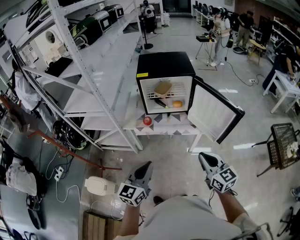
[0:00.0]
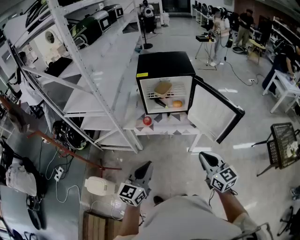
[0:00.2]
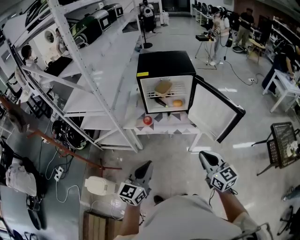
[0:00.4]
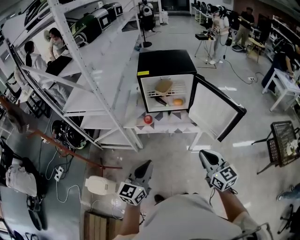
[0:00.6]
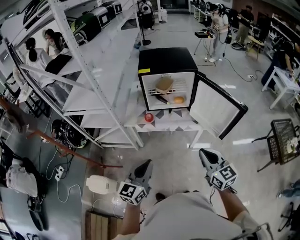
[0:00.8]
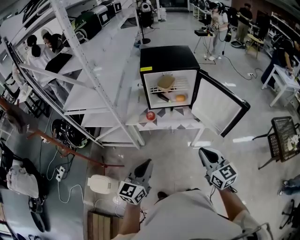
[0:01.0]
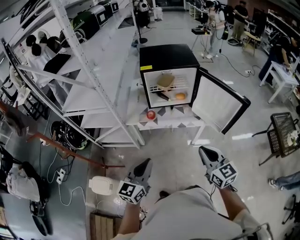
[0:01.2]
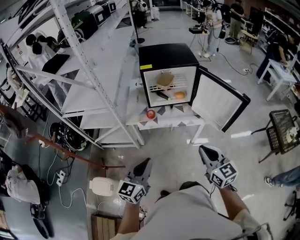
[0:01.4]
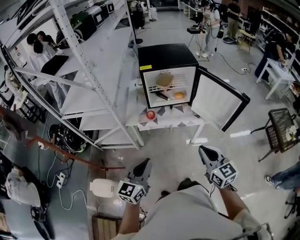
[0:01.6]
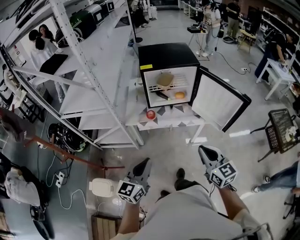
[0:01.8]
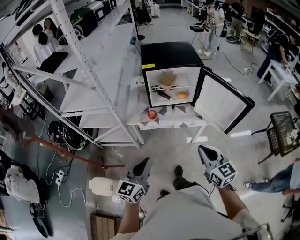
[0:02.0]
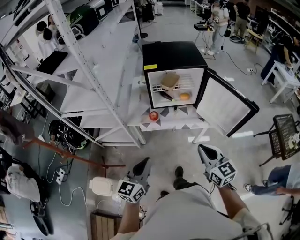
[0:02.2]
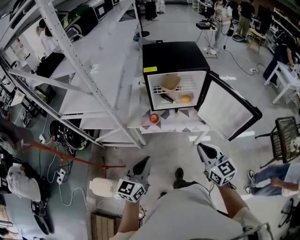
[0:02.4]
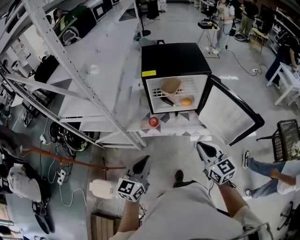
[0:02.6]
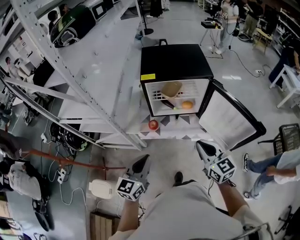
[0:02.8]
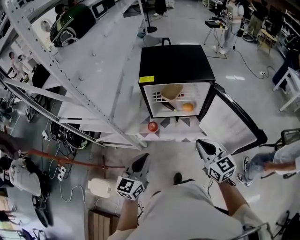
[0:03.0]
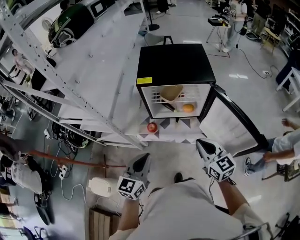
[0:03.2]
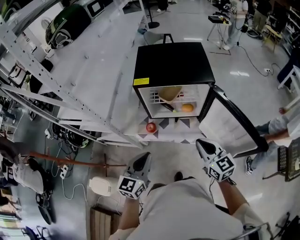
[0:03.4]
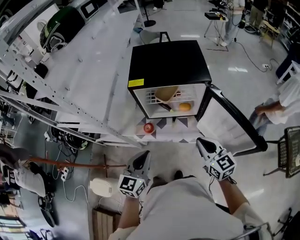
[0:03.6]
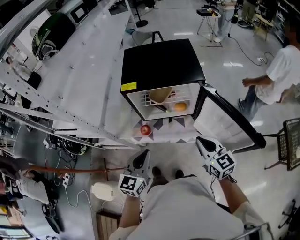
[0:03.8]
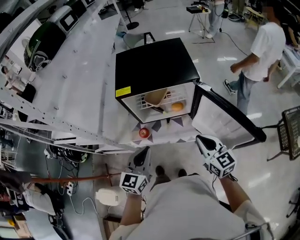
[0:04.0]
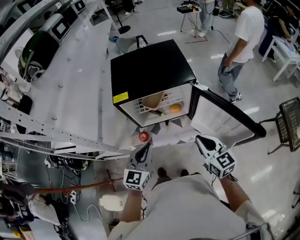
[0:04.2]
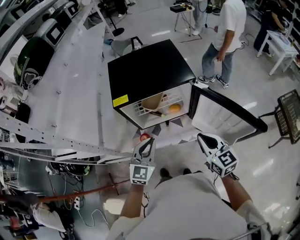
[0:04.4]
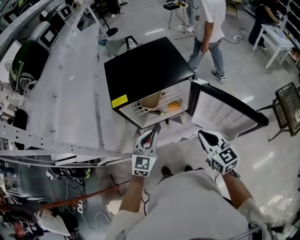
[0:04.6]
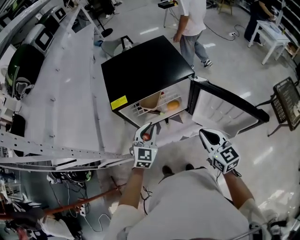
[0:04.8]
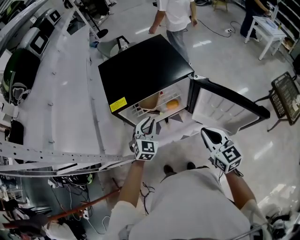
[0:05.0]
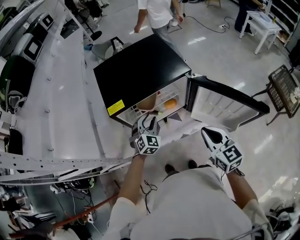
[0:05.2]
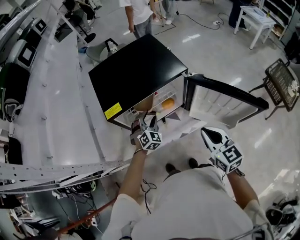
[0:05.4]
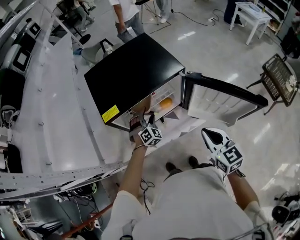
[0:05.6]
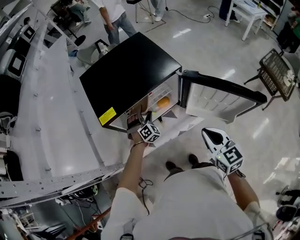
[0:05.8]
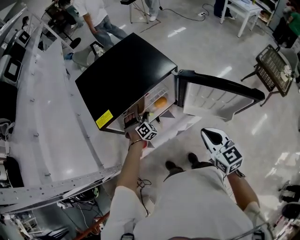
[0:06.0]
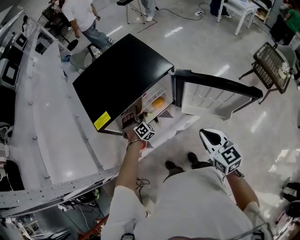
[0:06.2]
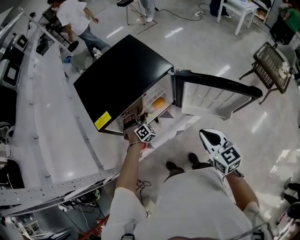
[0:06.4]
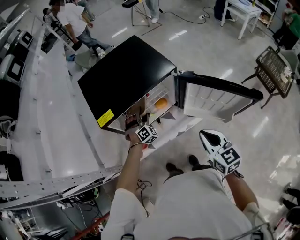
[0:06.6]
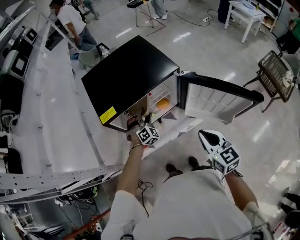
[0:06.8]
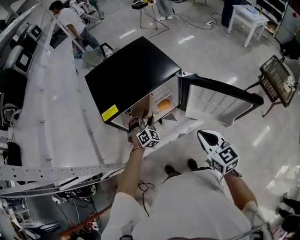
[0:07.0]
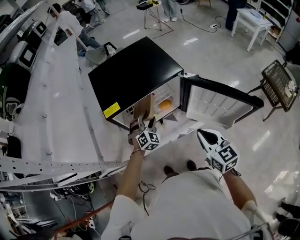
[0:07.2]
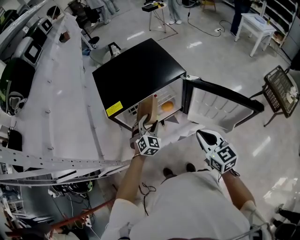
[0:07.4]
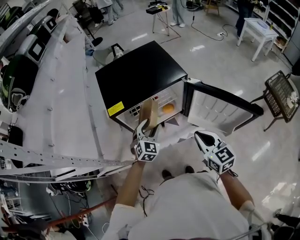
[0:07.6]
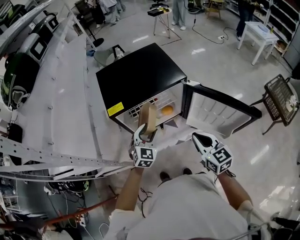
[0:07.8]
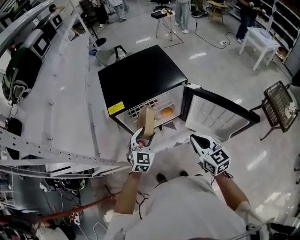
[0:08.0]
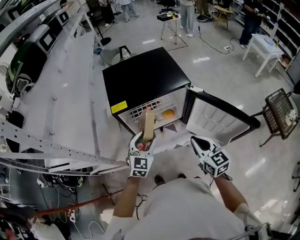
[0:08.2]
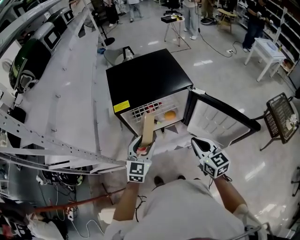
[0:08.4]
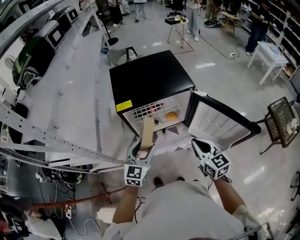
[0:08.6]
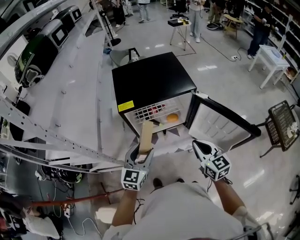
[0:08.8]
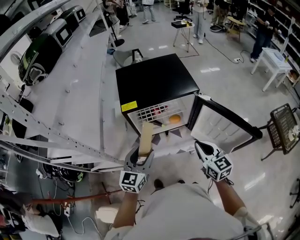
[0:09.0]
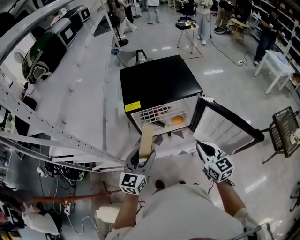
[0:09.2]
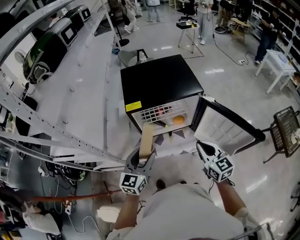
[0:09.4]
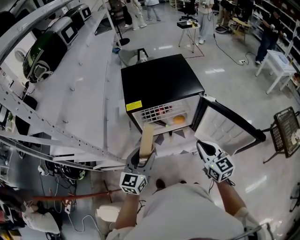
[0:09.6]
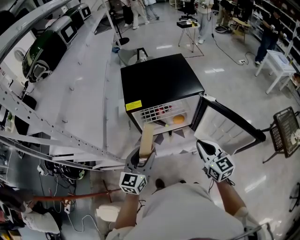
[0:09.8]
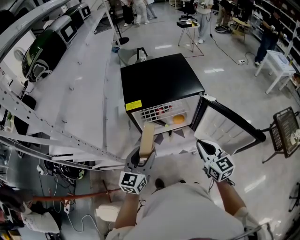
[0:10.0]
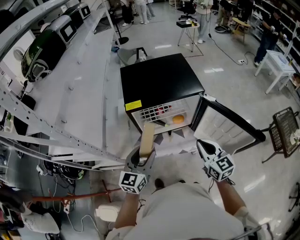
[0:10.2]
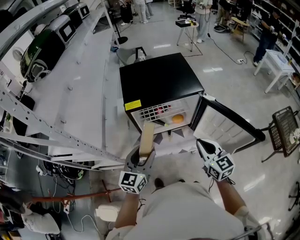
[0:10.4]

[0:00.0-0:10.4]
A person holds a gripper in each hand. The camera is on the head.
0:00.0 to 0:01.4: Both grippers travel together to the left, roughly 10 cm.
0:01.4 to 0:03.0: The two grippers go approximately 25 cm forward.
0:03.0 to 0:04.4: The left gripper moves forward and to the right, roughly 20 cm, and turns by roughly 30 degrees; the right gripper heads forward and to the right, covering some 10 cm.
0:04.4 to 0:06.0: The right gripper rotates some 20 degrees, while the left gripper moves forward and downward, roughly 30 cm, rotates around the line of its fingers by about 50 degrees, clockwise from behind, and opens its fingers.
0:06.0 to 0:07.4: The left gripper travels upward and backward by about 15 cm, and changes its angle by roughly 30 degrees.
0:07.4 to 0:09.0: The left gripper moves backward, upward and to the left, about 20 cm, and rolls counterclockwise, seen from behind, by about 40 degrees.
0:09.0 to 0:10.4: The grippers make only small movements.

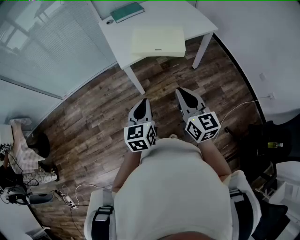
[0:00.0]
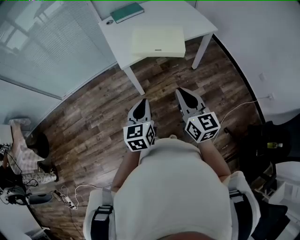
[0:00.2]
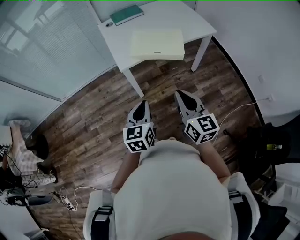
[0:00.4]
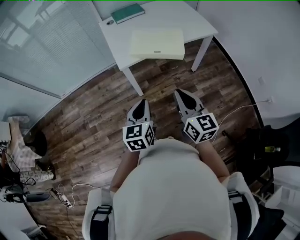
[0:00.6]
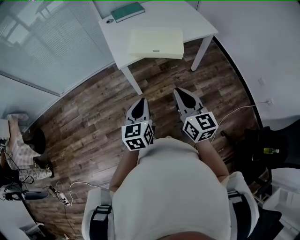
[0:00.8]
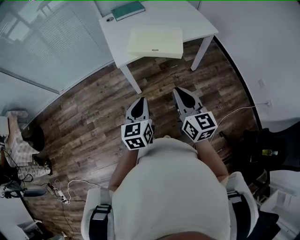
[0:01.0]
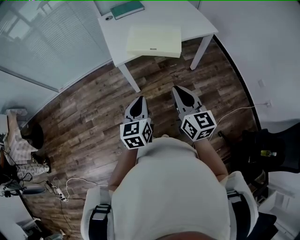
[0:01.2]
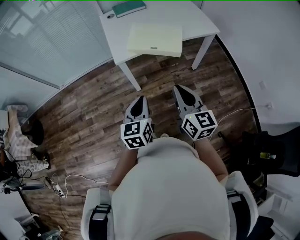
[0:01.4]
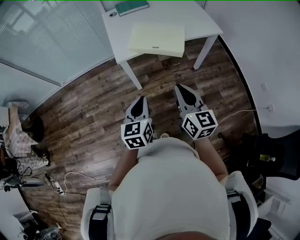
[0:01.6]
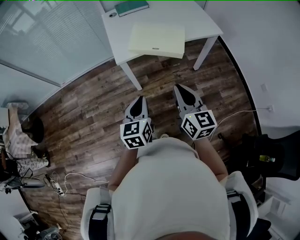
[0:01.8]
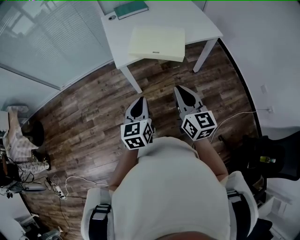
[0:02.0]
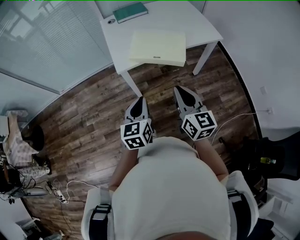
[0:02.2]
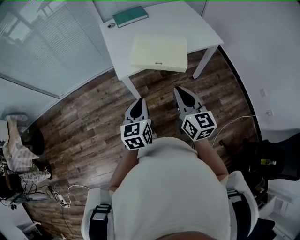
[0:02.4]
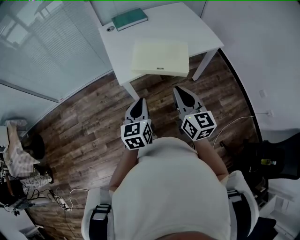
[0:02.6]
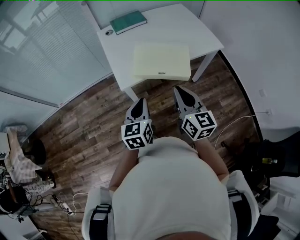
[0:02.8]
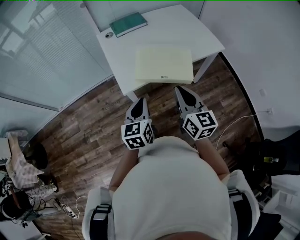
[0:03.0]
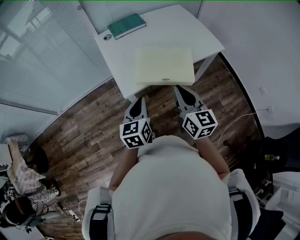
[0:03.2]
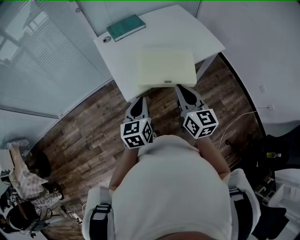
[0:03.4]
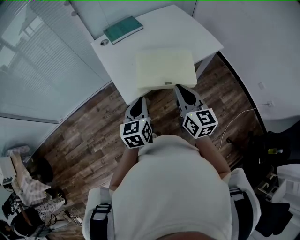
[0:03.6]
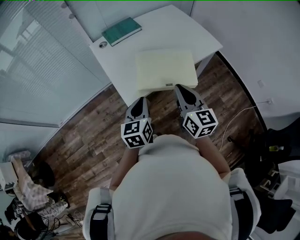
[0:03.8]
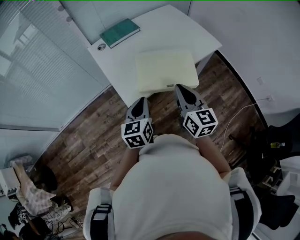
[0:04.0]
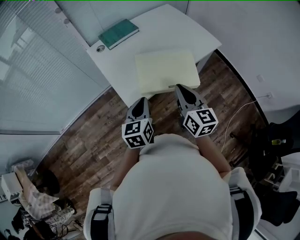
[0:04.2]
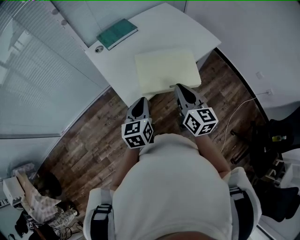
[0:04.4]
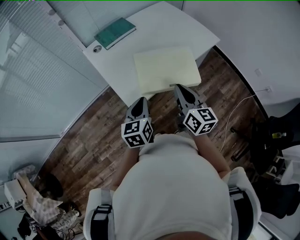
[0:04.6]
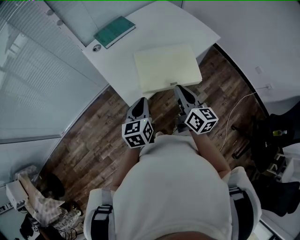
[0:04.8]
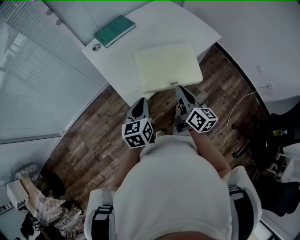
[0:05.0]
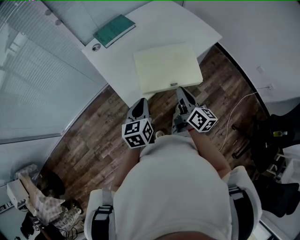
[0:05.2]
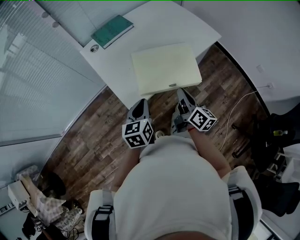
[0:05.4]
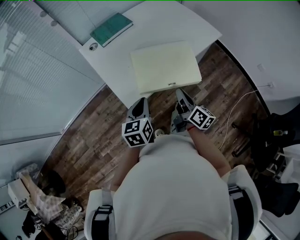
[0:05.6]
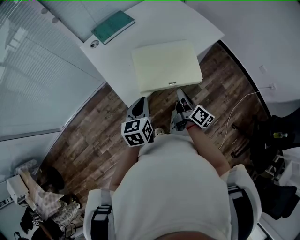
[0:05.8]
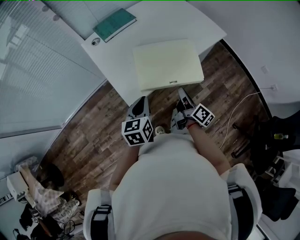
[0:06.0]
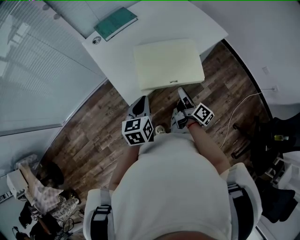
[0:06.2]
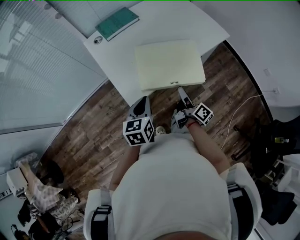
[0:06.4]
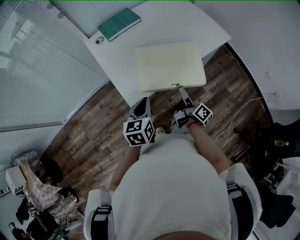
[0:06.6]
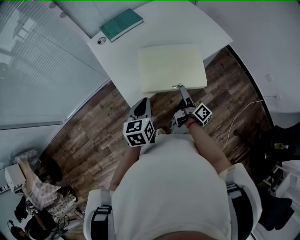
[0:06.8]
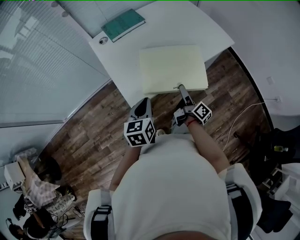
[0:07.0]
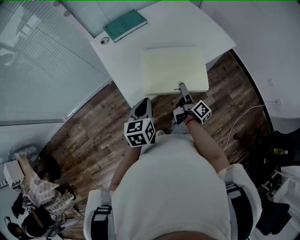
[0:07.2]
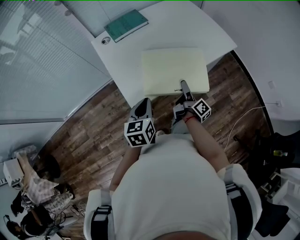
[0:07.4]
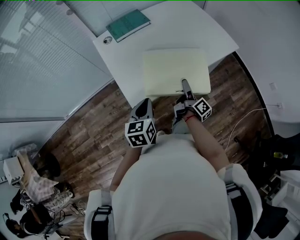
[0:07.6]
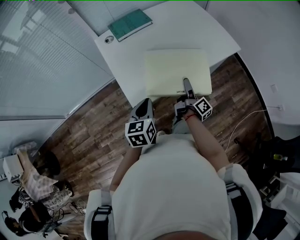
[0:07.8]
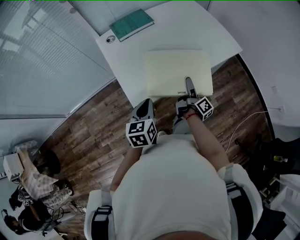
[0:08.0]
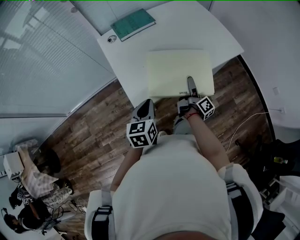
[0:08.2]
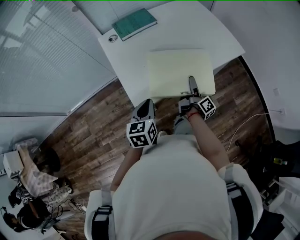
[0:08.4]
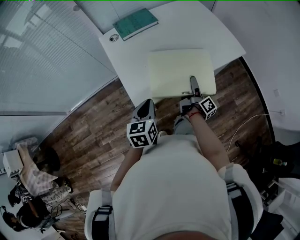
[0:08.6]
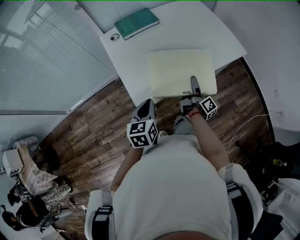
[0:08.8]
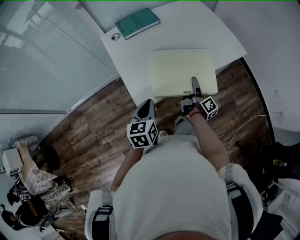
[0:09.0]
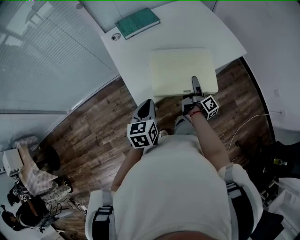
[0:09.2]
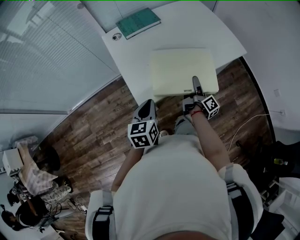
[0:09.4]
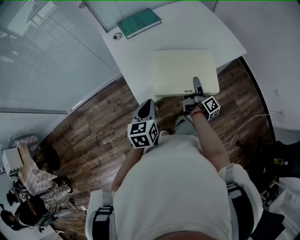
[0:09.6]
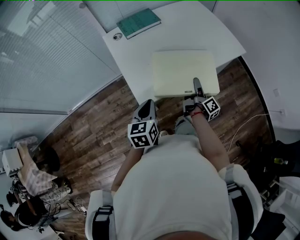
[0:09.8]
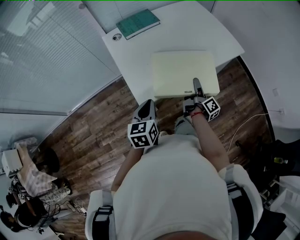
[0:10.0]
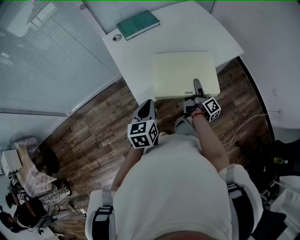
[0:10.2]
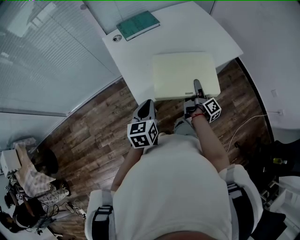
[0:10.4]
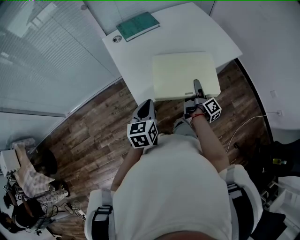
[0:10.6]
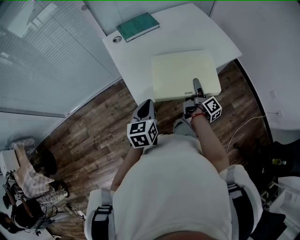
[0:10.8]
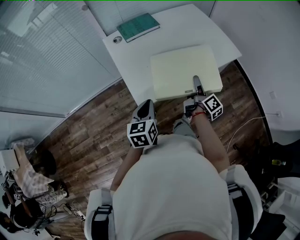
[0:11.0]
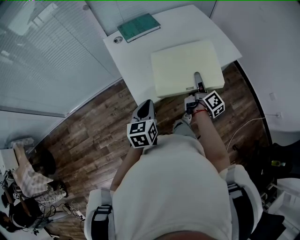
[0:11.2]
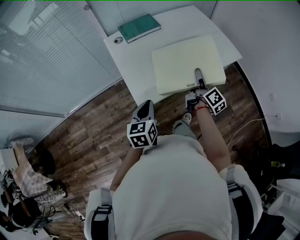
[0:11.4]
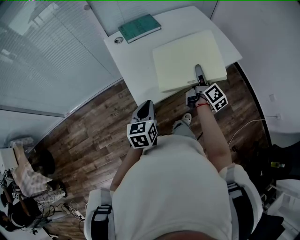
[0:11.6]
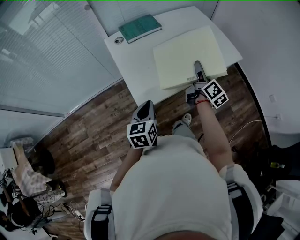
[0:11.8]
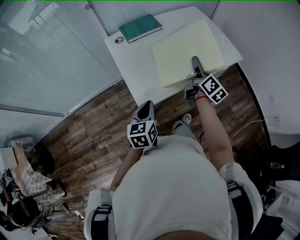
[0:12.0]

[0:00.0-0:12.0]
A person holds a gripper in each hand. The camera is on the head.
0:00.0 to 0:01.6: The right gripper moves roughly 5 cm.
0:01.6 to 0:03.0: The grippers both shift forward by approximately 20 cm.
0:03.0 to 0:04.4: The two grippers go roughly 10 cm forward.
0:04.4 to 0:06.0: The right gripper moves downward, roughly 15 cm, and rolls clockwise, seen from behind, by about 50 degrees.
0:06.0 to 0:07.6: The right gripper moves forward, roughly 10 cm, and opens its fingers.
0:07.6 to 0:10.4: The grippers make only small movements.
0:10.4 to 0:12.0: The right gripper shifts about 15 cm upward and forward, and turns by some 40 degrees.

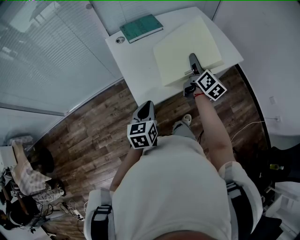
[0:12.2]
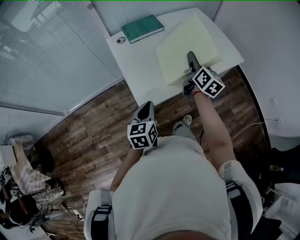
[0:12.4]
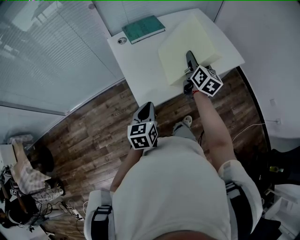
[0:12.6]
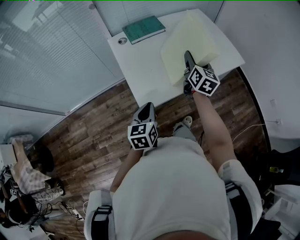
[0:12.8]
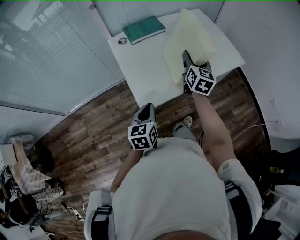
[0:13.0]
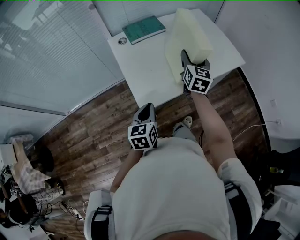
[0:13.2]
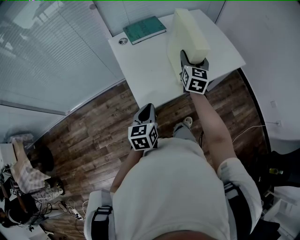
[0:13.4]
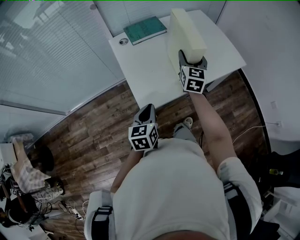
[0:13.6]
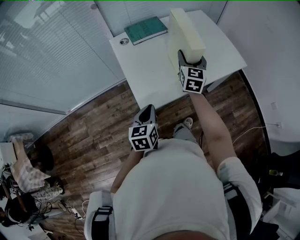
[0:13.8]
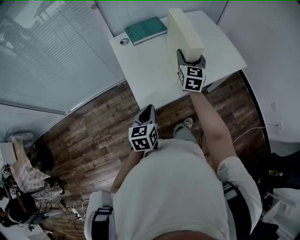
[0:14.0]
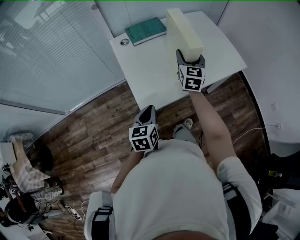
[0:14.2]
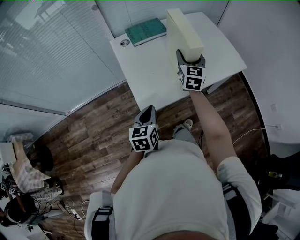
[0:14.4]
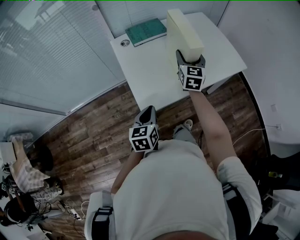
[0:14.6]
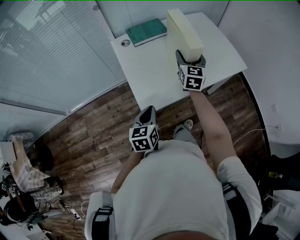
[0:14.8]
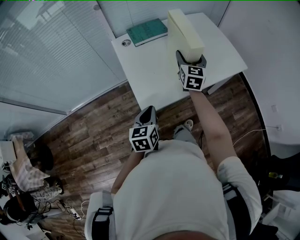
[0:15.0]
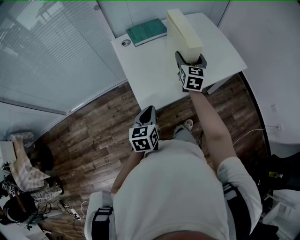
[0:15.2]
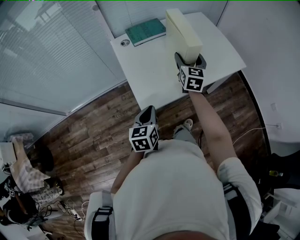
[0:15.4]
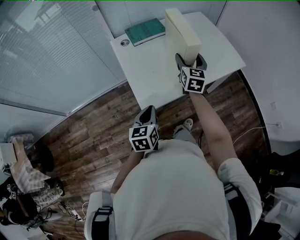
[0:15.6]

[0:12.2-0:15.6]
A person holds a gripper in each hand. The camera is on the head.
0:12.2 to 0:13.8: The right gripper shifts roughly 5 cm to the left, and twists approximately 40 degrees counterclockwise, seen from behind.
0:13.8 to 0:15.6: The grippers make only small movements.
